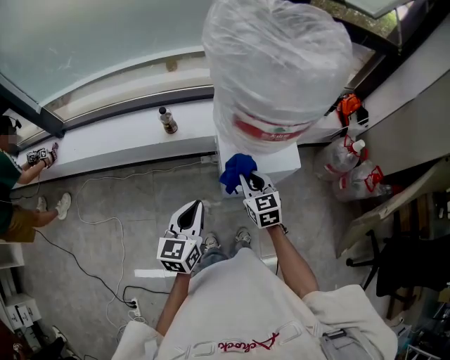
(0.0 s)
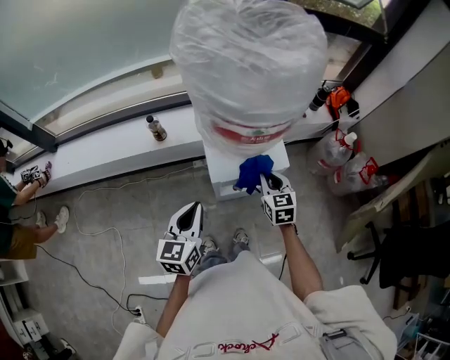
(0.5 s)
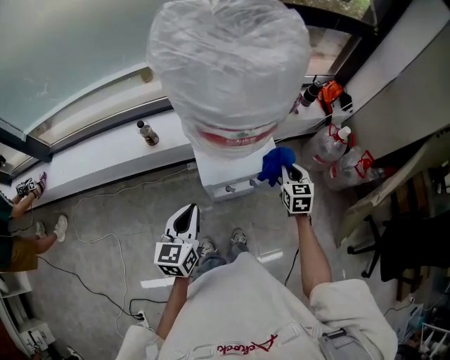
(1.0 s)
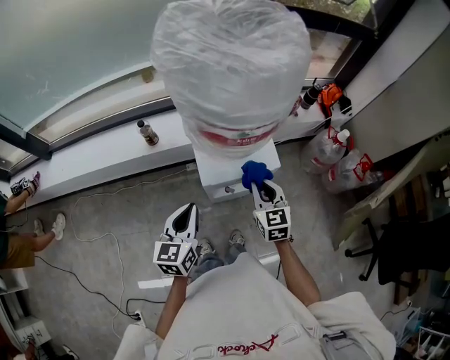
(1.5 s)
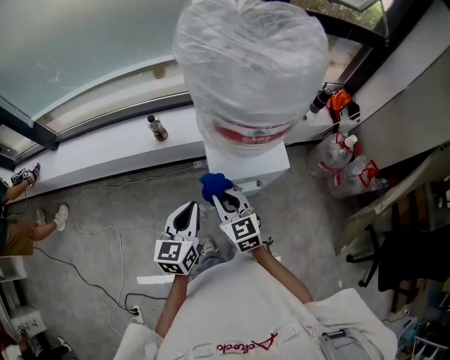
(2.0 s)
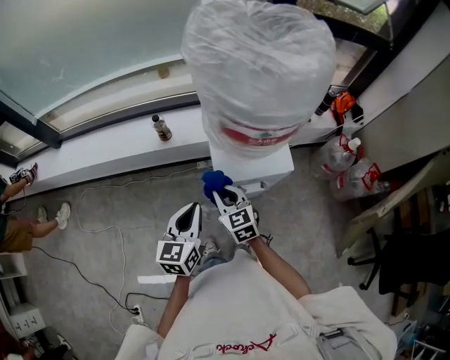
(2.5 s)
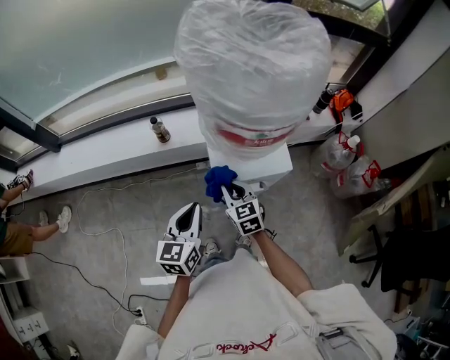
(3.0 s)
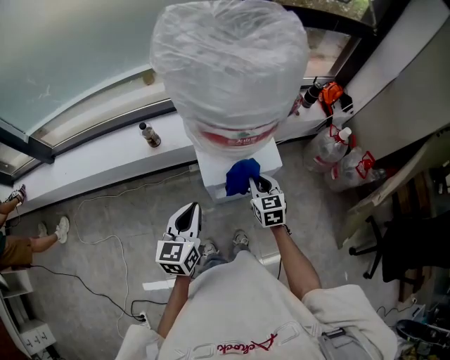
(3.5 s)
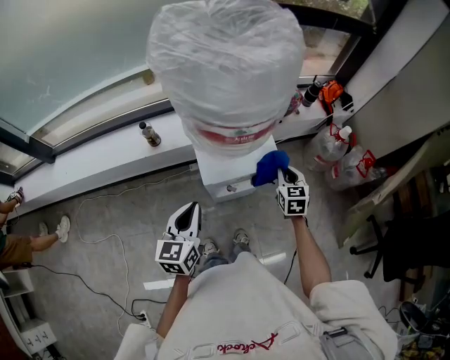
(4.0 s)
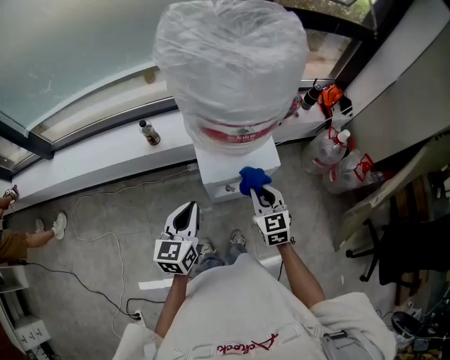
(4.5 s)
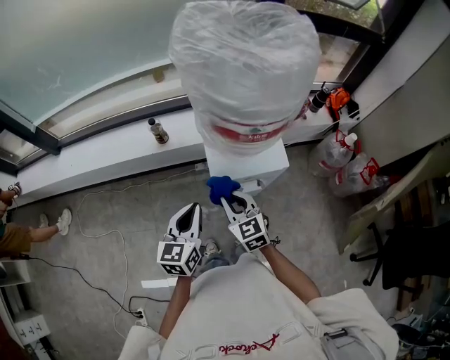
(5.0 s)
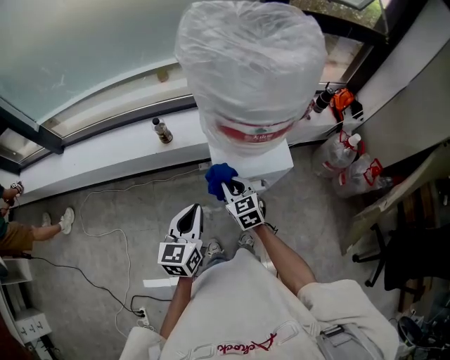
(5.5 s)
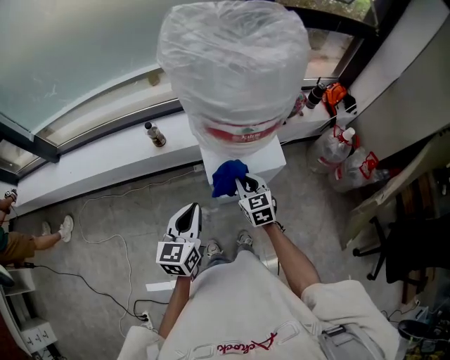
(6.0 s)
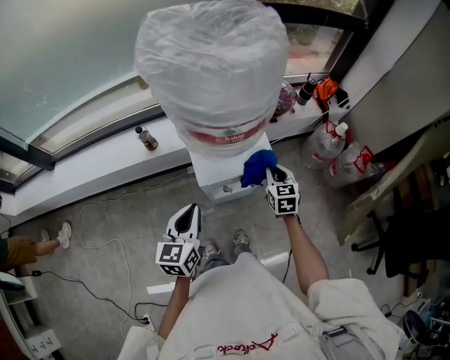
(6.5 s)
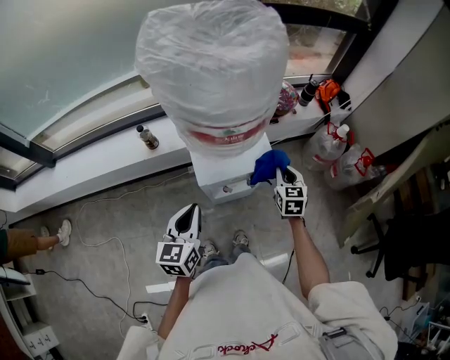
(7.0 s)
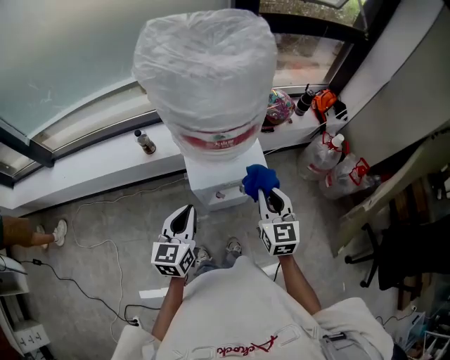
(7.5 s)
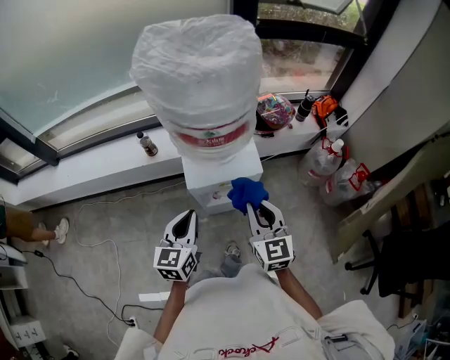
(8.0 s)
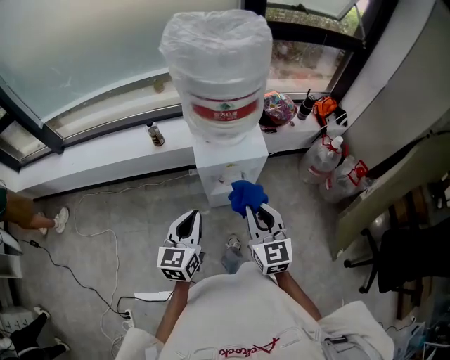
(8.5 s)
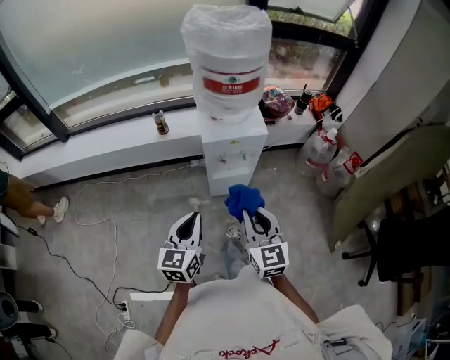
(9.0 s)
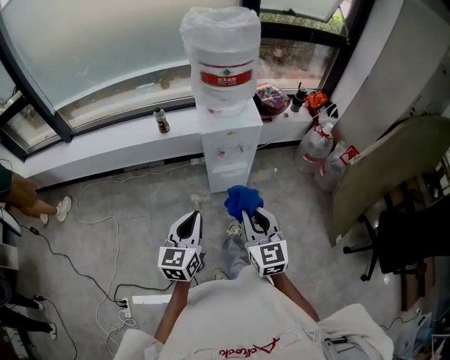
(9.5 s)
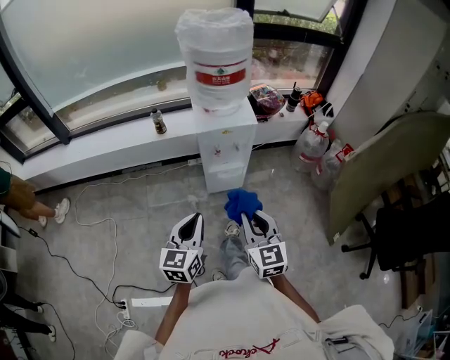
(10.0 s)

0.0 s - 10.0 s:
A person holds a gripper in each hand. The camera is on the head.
0.0 s - 2.0 s: The right gripper shifts roughly 5 cm backward, and travels to the right and back again, about 25 cm each way.
2.0 s - 4.0 s: The right gripper is displaced to the right by roughly 25 cm, and changes its angle by approximately 30 degrees.
4.0 s - 6.0 s: The right gripper moves to the left, approximately 20 cm.
6.0 s - 8.0 s: The right gripper travels upward, to the right and backward by roughly 20 cm. The left gripper travels to the right by approximately 10 cm.
8.0 s - 10.0 s: Both grippers travel together backward, roughly 30 cm.

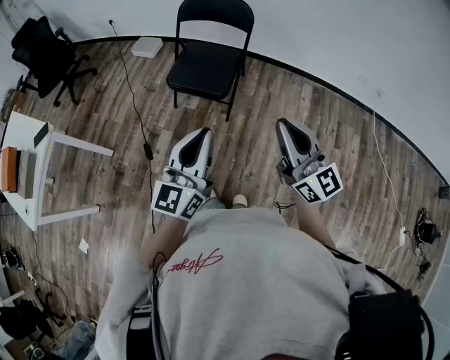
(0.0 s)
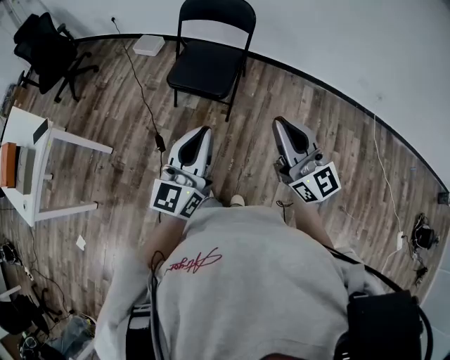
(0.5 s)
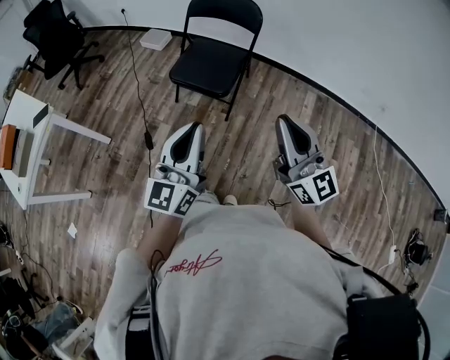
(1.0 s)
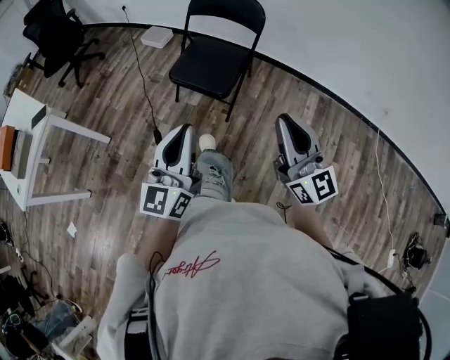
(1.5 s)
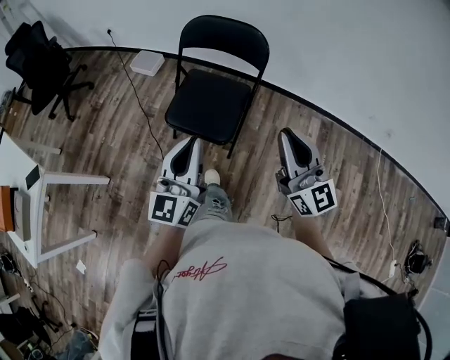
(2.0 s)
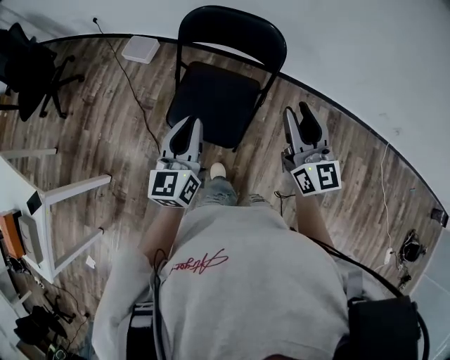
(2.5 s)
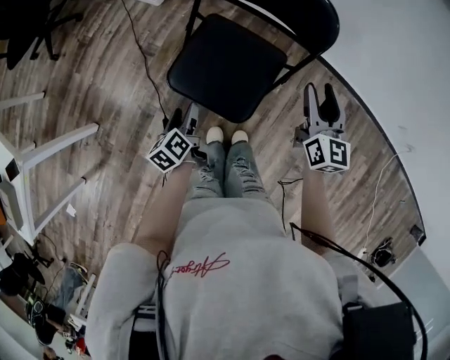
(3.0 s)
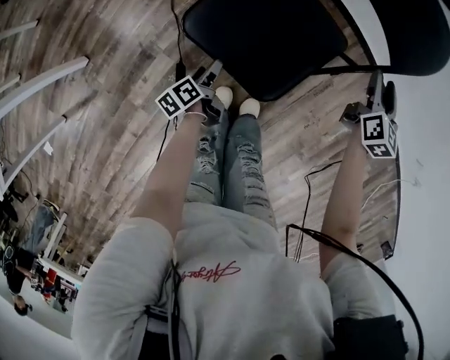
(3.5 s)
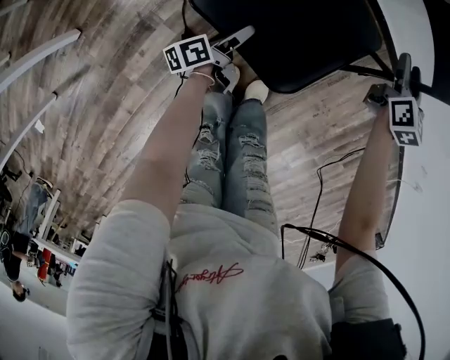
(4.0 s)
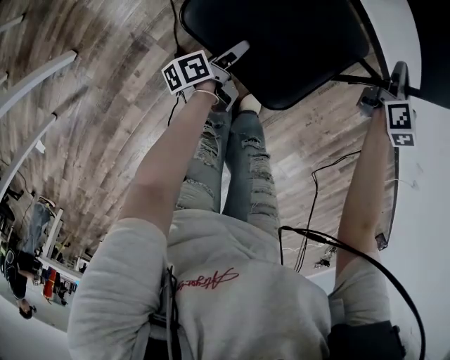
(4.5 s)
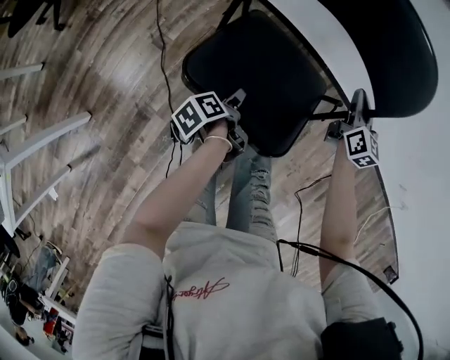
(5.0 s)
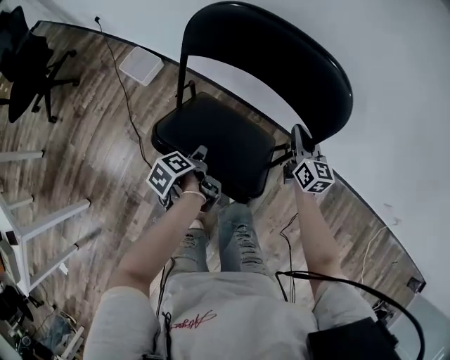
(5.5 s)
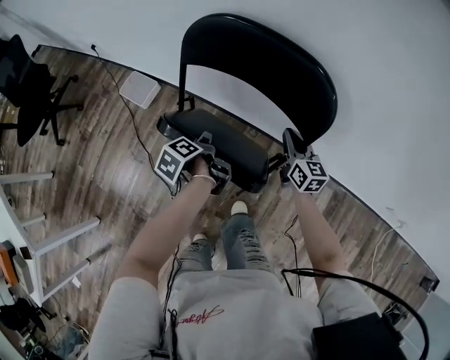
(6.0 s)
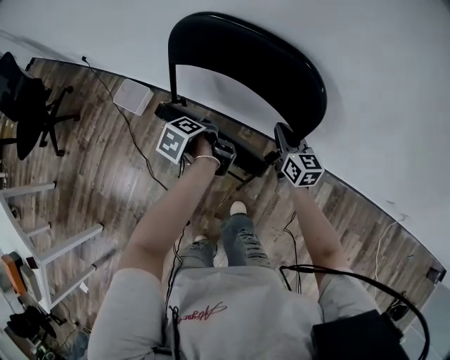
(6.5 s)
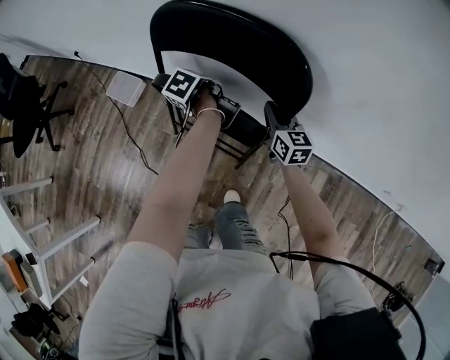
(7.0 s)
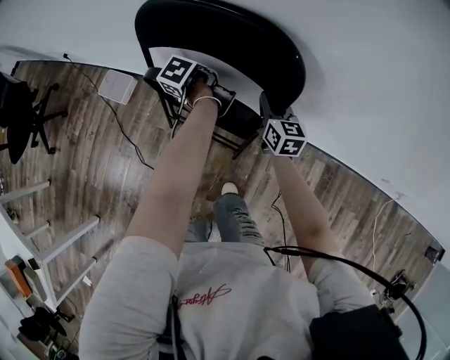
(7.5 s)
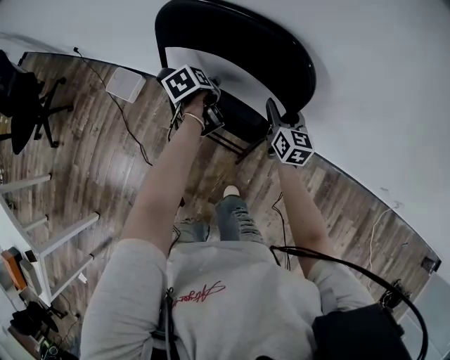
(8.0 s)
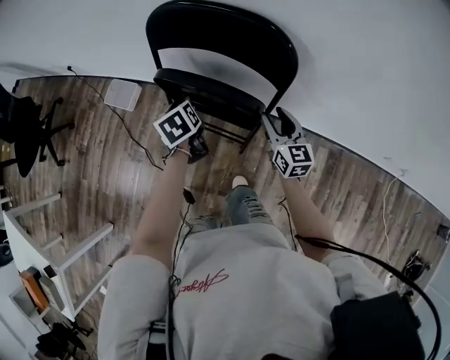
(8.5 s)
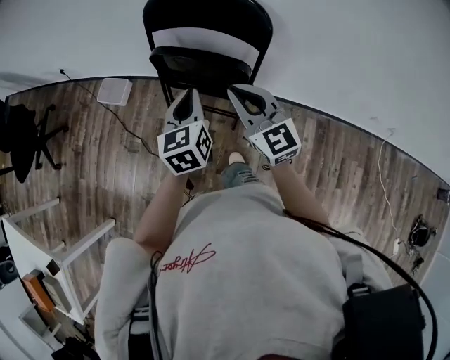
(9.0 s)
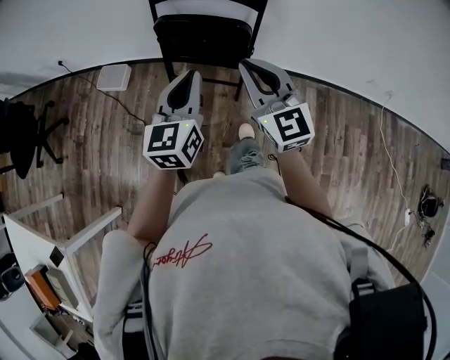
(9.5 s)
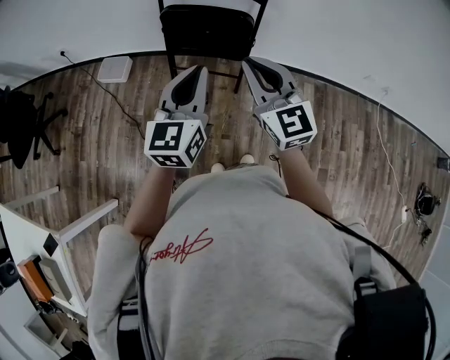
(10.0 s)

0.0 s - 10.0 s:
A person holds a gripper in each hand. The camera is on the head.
0.0 s - 2.0 s: The two grippers go some 25 cm forward.
2.0 s - 4.0 s: The left gripper travels downward by approximately 60 cm, rotates around the line of its fingers by roughly 70 degrees, counterclockwise from behind, and opens. The right gripper goes about 60 cm forward and downward, tips its fingers downward by some 40 degrees, and opens its fingers.
4.0 s - 6.0 s: The right gripper moves forward and upward, about 20 cm, and closes up; the left gripper is displaced forward and upward by approximately 40 cm, changes its angle by some 30 degrees, and closes its fingers.
6.0 s - 8.0 s: The left gripper moves forward and to the right, approximately 15 cm, swivels roughly 40 degrees, and opens its fingers. Meanwhile the right gripper ends up approximately 5 cm from where it was, and opens its fingers.
8.0 s - 10.0 s: The two grippers travel together, backward, approximately 40 cm. The two grippers go approximately 30 cm upward. The left gripper tips its fingers upward by some 50 degrees, and closes up, while the right gripper rotates approximately 30 degrees, and closes its fingers.

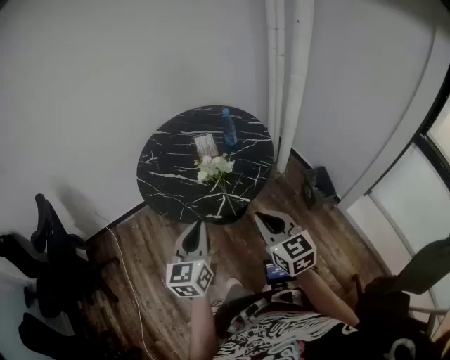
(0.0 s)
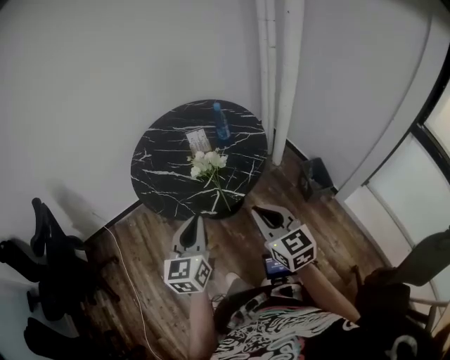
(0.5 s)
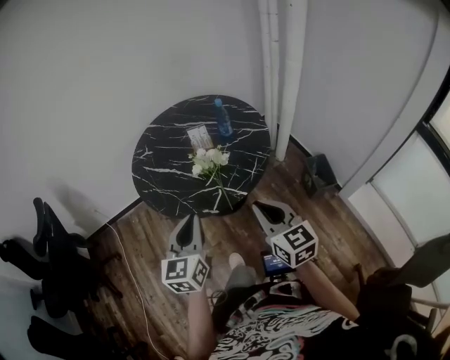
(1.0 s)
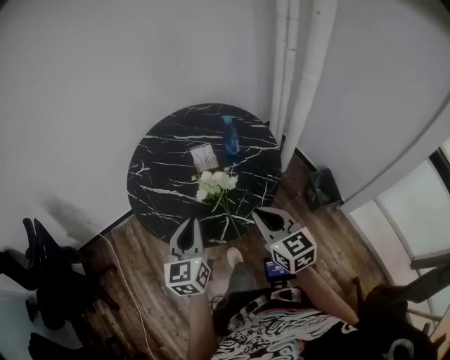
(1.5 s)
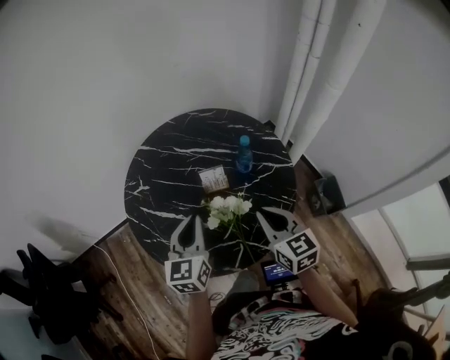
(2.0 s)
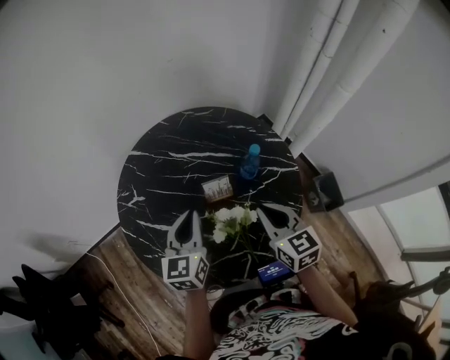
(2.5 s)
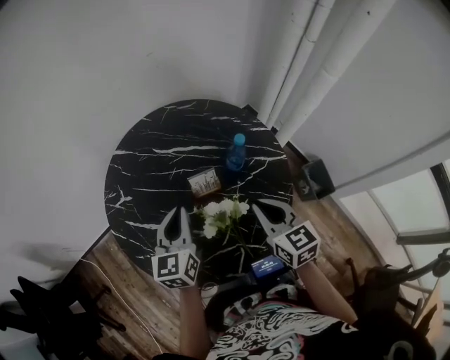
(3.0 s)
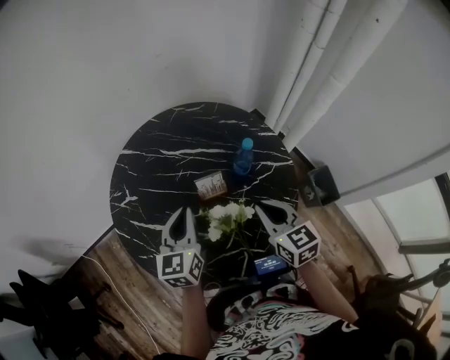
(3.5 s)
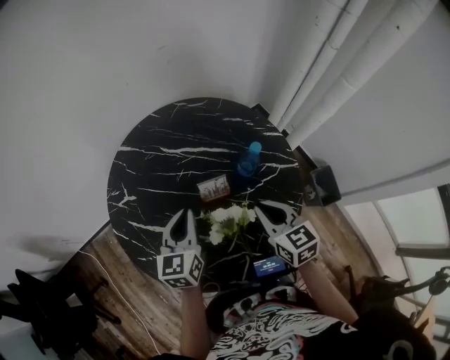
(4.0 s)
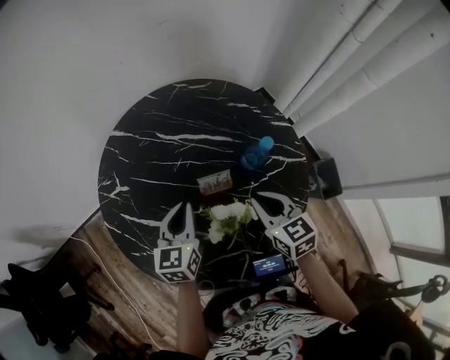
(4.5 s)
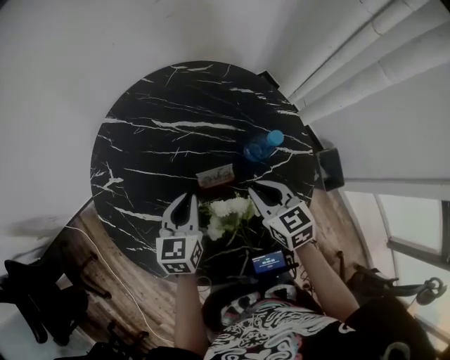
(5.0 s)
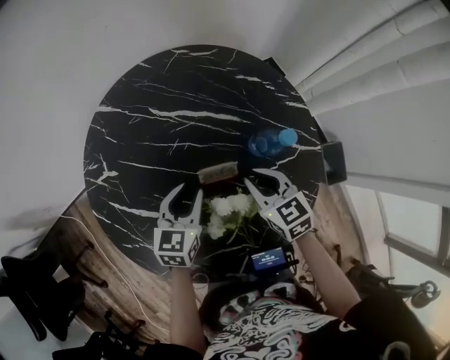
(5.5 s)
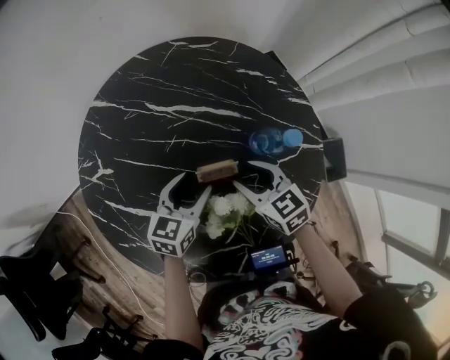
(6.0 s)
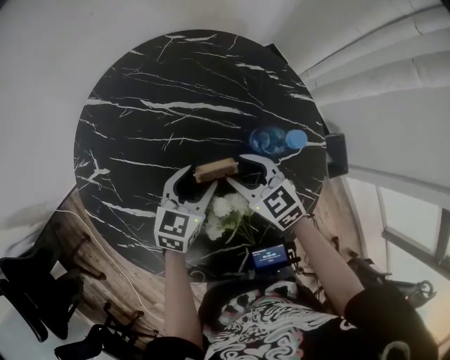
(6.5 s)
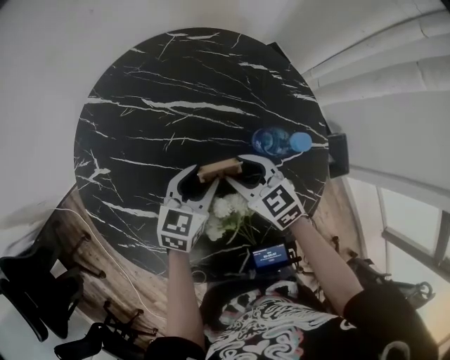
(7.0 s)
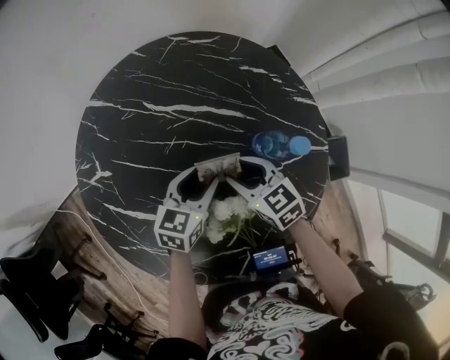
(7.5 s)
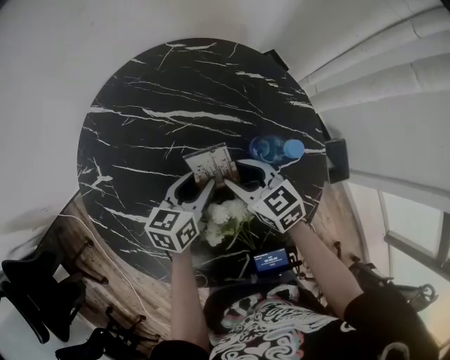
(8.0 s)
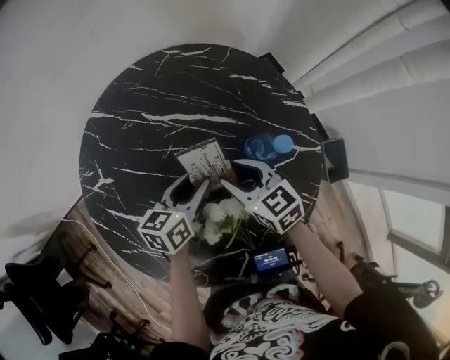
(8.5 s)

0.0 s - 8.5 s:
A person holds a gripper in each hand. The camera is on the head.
0.0 s - 2.0 s: The two grippers go approximately 30 cm forward.
2.0 s - 4.0 s: The grippers both shift forward and downward by roughly 10 cm.
4.0 s - 6.5 s: The right gripper travels downward, forward and to the left by approximately 20 cm, turns by about 20 degrees, and opens its fingers; the left gripper travels downward by approximately 15 cm, turns by approximately 30 degrees, and opens up.
6.5 s - 8.5 s: The left gripper changes its angle by about 30 degrees.
